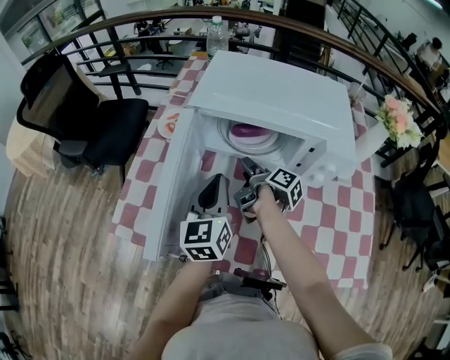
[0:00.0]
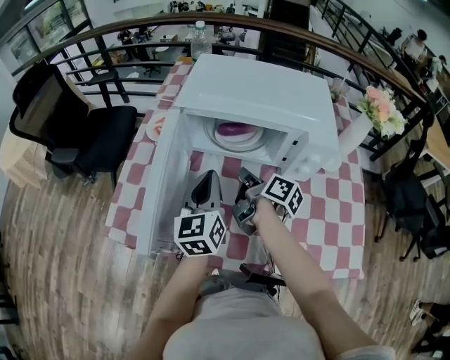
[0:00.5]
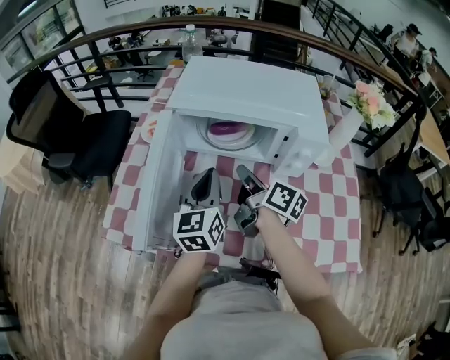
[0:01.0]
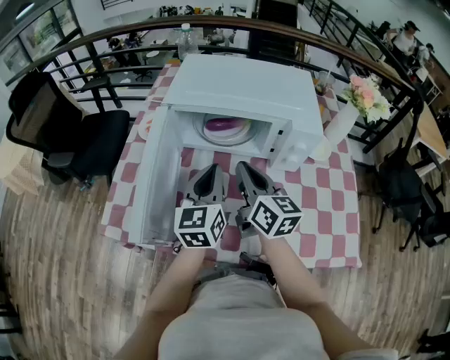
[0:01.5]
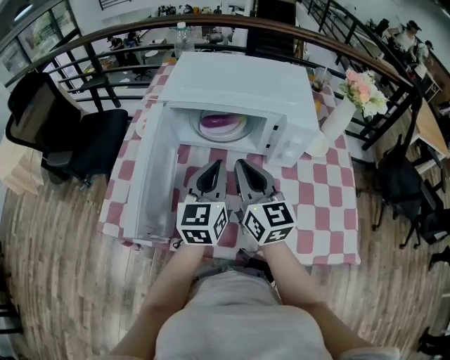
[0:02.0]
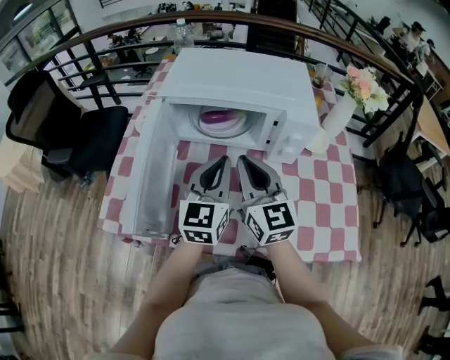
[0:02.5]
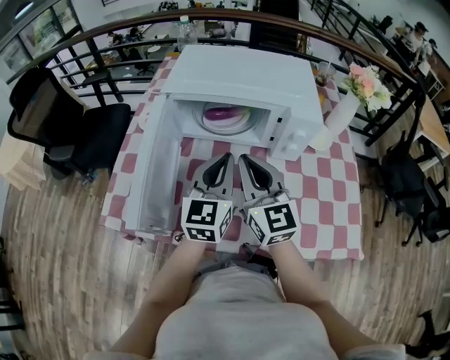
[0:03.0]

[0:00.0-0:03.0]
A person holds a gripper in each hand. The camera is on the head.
0:00.0 to 0:01.5: The left gripper changes place by approximately 5 cm.

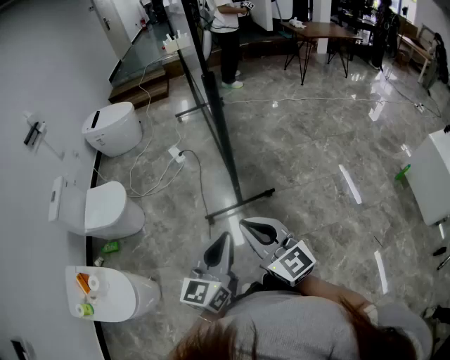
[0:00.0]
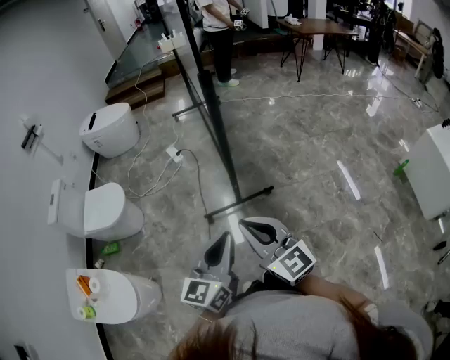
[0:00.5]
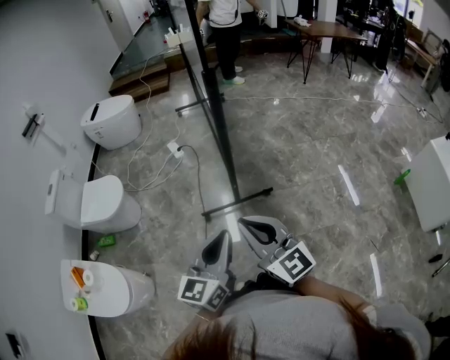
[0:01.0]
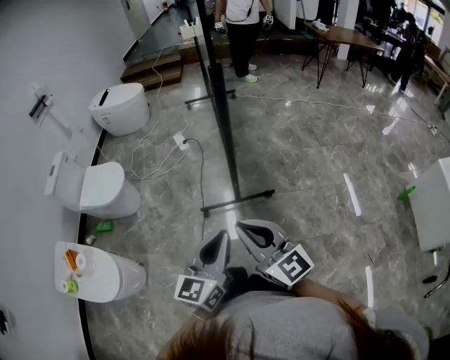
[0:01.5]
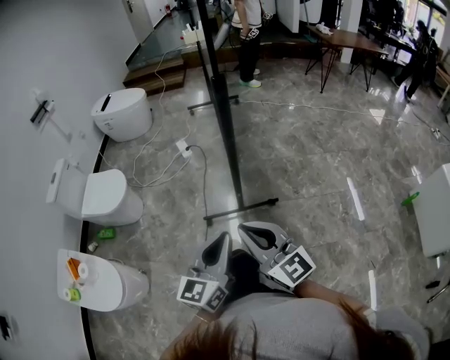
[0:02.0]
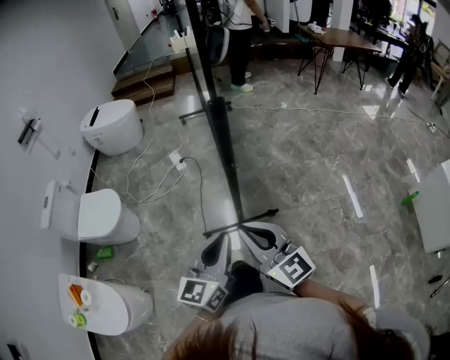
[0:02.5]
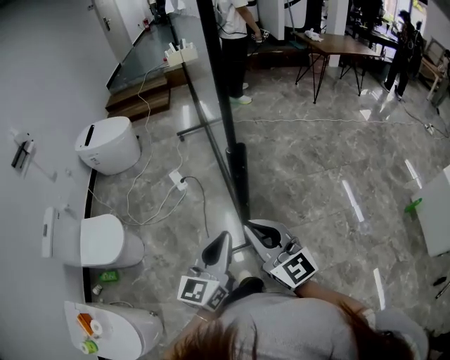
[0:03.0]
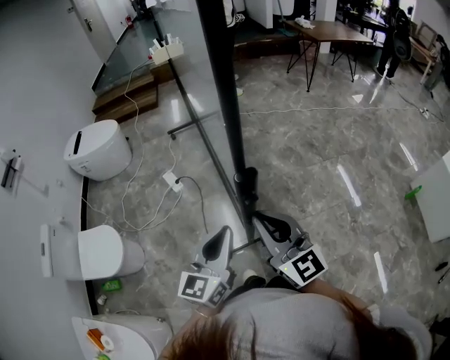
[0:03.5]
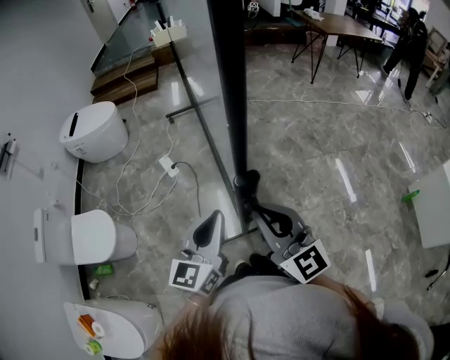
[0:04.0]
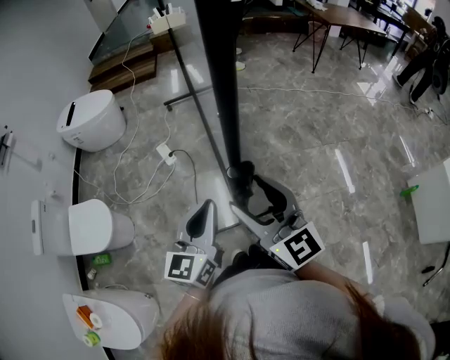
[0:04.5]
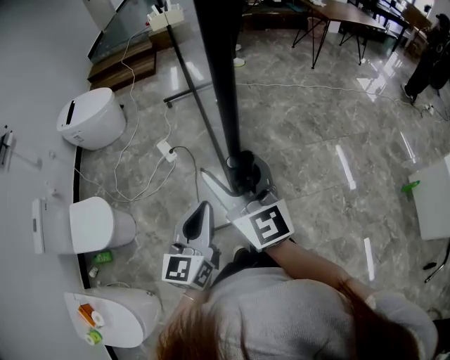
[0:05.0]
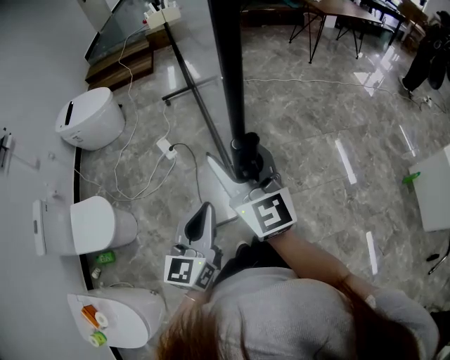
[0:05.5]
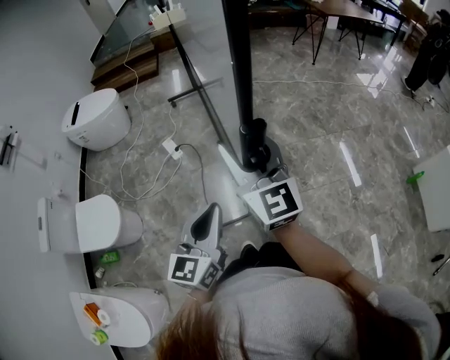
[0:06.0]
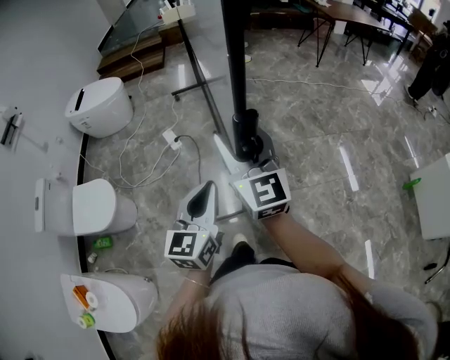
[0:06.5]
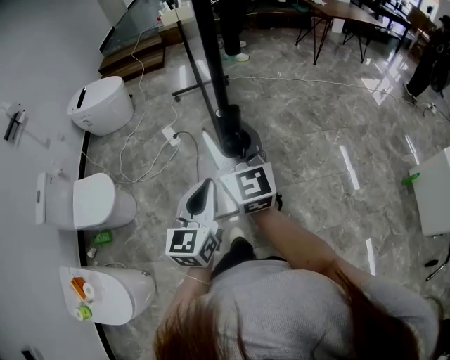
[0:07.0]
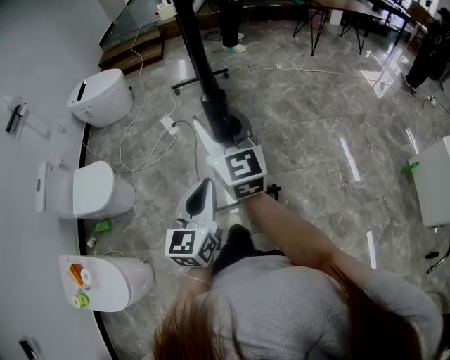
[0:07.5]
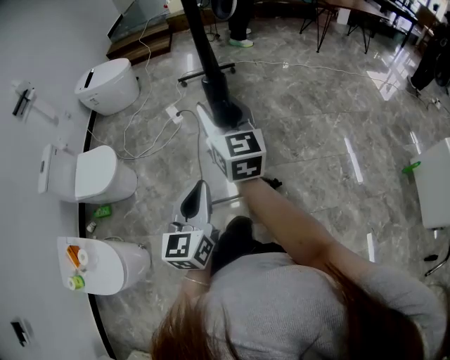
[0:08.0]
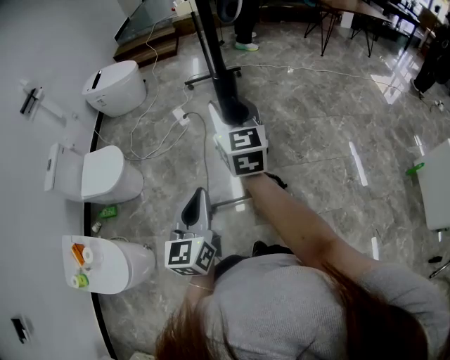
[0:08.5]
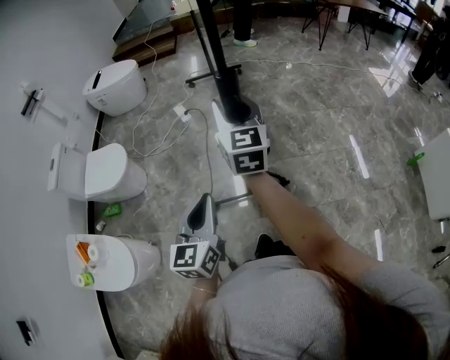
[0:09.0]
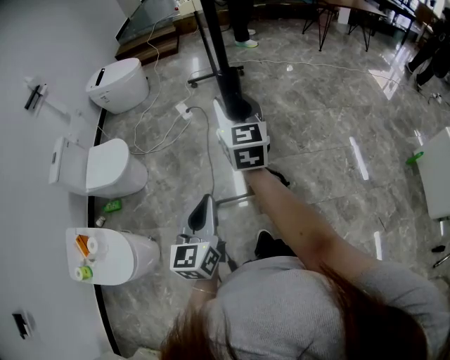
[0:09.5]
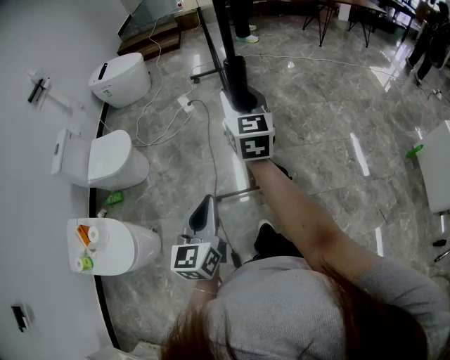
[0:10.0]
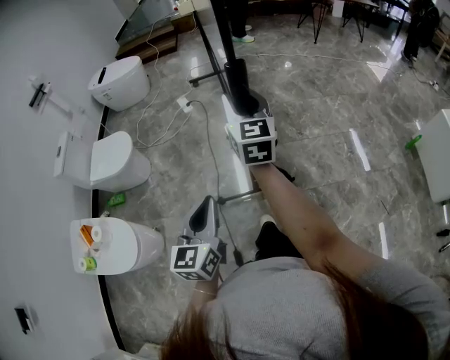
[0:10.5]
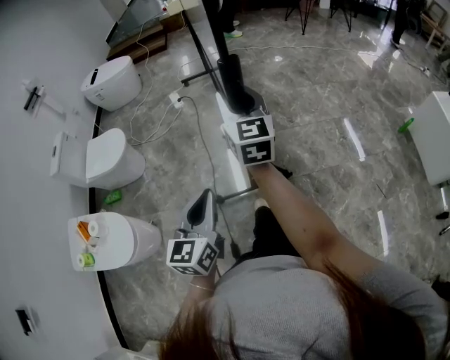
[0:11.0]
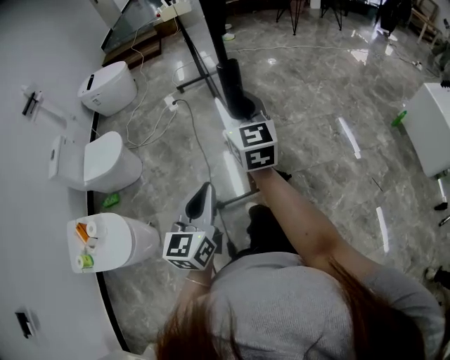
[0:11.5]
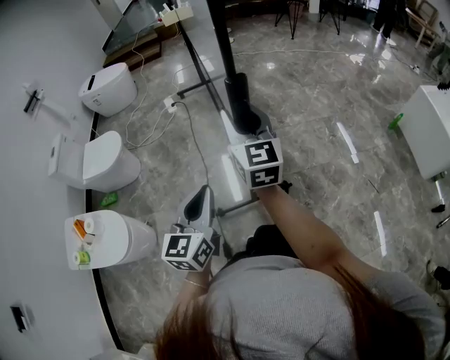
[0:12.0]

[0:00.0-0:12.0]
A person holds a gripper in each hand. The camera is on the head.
0:00.0 to 0:02.0: The left gripper shifts some 5 cm forward. Meanwhile the right gripper moves about 5 cm.
0:02.0 to 0:04.0: The two grippers go roughly 30 cm forward.
0:04.0 to 0:06.0: The right gripper is displaced forward by roughly 5 cm, and opens its fingers. The left gripper shifts by about 5 cm.
0:06.0 to 0:08.0: Both grippers move backward, approximately 15 cm.
0:08.0 to 0:10.0: The right gripper heads backward, covering approximately 10 cm; the left gripper goes approximately 15 cm backward.
0:10.0 to 0:12.0: The left gripper is displaced backward and to the right by some 15 cm, while the right gripper travels backward by approximately 20 cm.

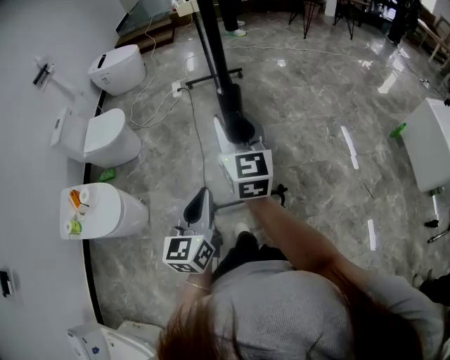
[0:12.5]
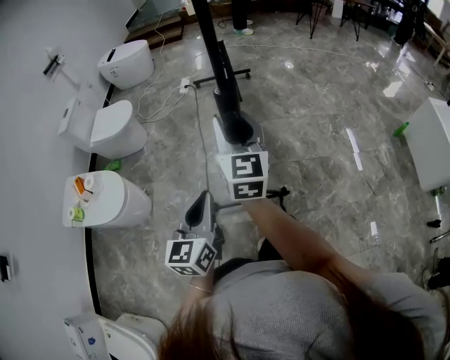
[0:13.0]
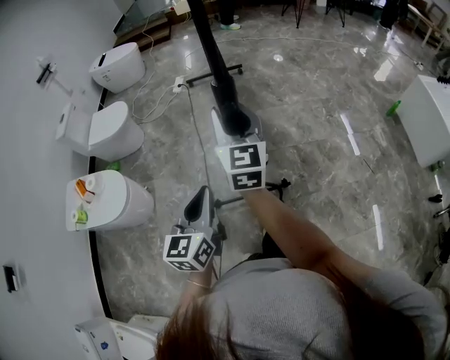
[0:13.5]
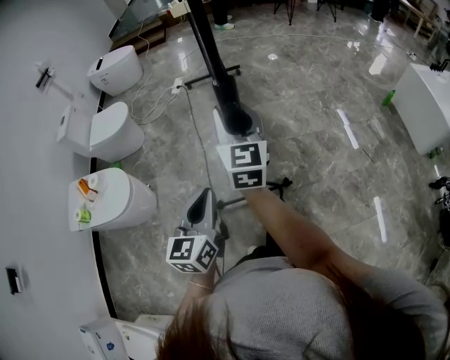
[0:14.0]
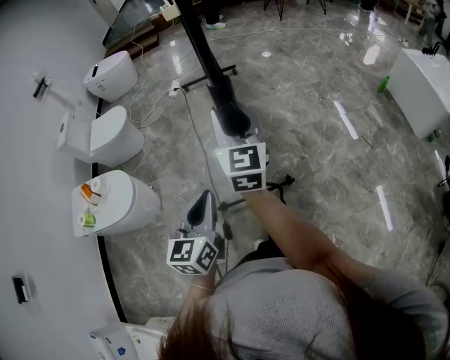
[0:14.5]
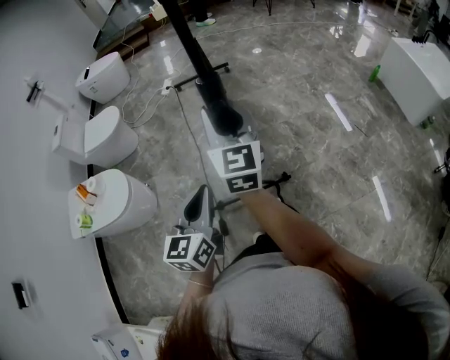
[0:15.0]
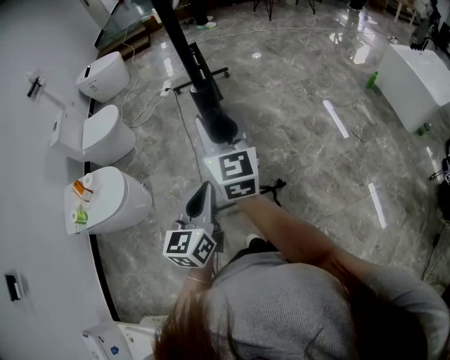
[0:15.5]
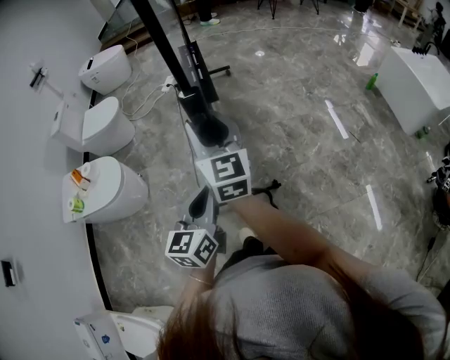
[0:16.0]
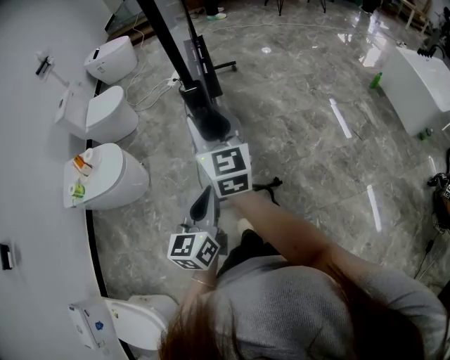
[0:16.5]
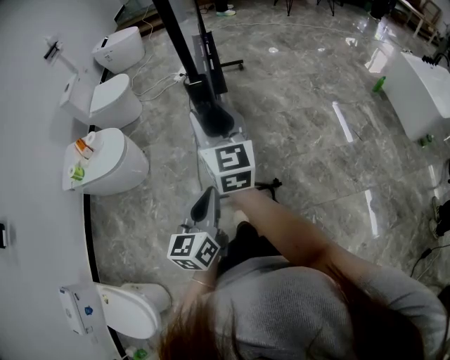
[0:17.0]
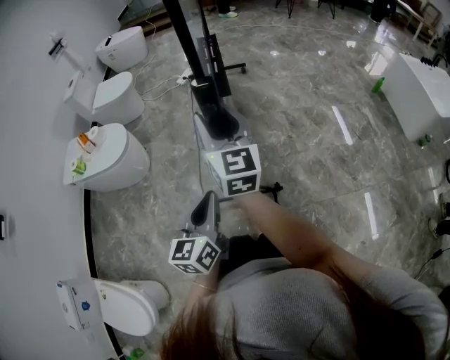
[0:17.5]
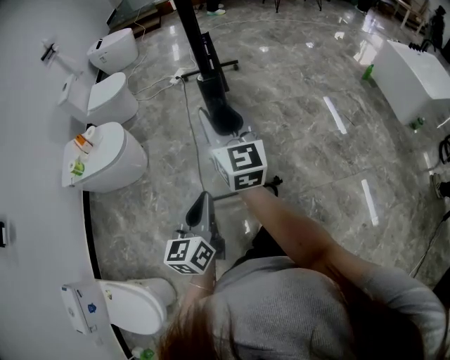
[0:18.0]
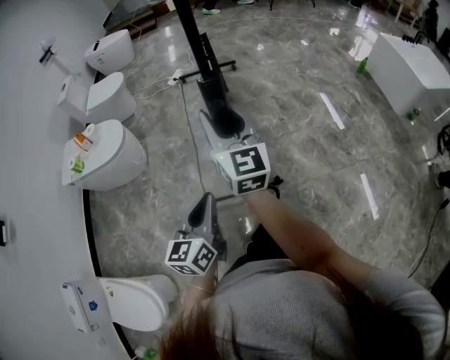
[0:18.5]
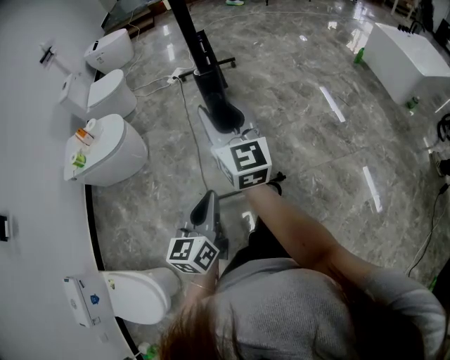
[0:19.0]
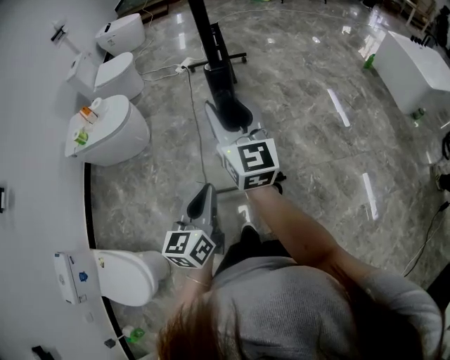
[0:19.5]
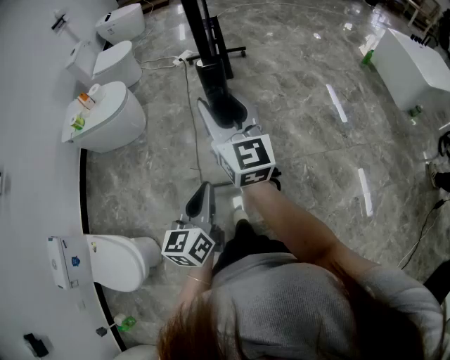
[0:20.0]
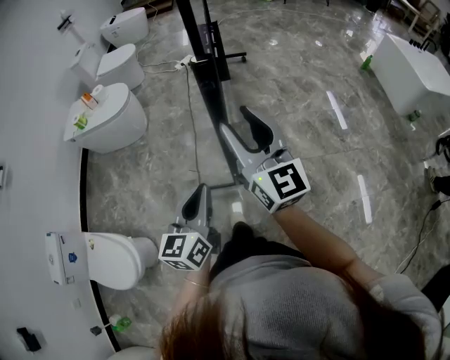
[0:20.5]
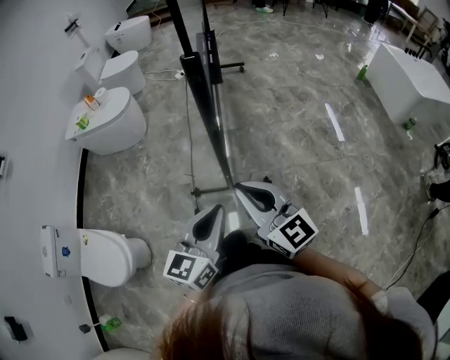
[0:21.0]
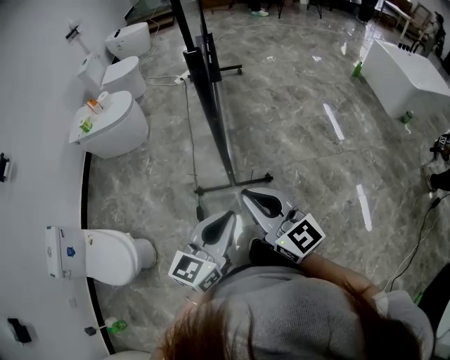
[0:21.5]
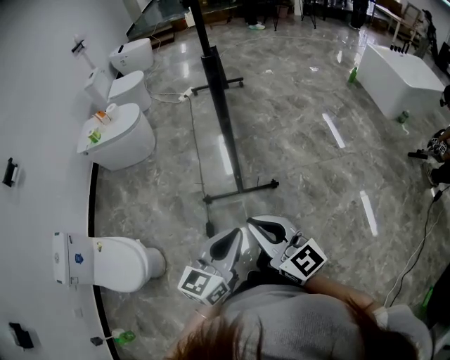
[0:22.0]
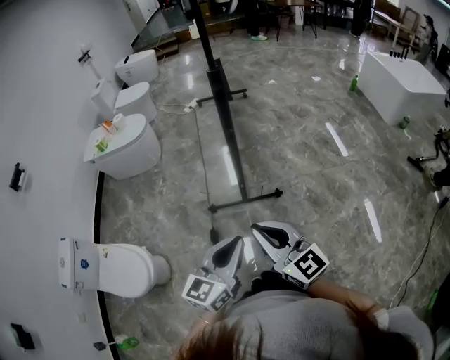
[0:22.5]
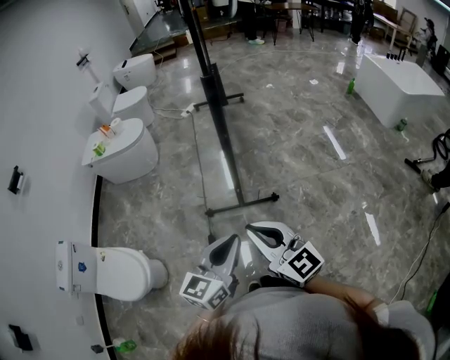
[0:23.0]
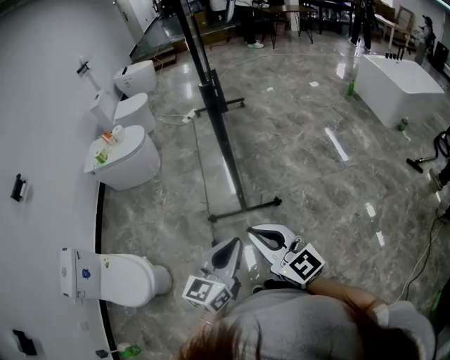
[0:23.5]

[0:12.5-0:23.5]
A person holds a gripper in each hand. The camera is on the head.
0:12.5 to 0:14.5: Both grippers move backward, roughly 20 cm.
0:14.5 to 0:16.0: The left gripper goes approximately 10 cm backward and to the right. Meanwhile the right gripper heads backward, covering about 10 cm.
0:16.0 to 0:18.0: The grippers both shift backward by about 20 cm.
0:18.0 to 0:20.0: The grippers both shift backward by approximately 20 cm.
0:20.0 to 0:21.5: The right gripper is displaced backward by some 30 cm, changes its angle by about 20 degrees, and closes up, while the left gripper moves backward and to the right, approximately 20 cm, and changes its angle by roughly 20 degrees.
0:21.5 to 0:23.5: The two grippers go about 5 cm backward.

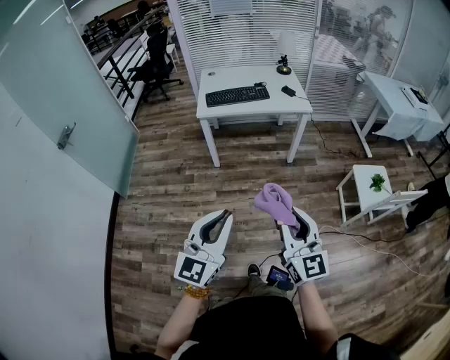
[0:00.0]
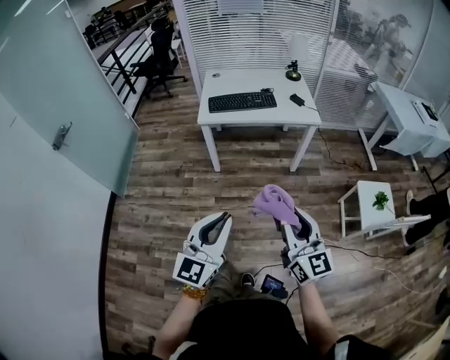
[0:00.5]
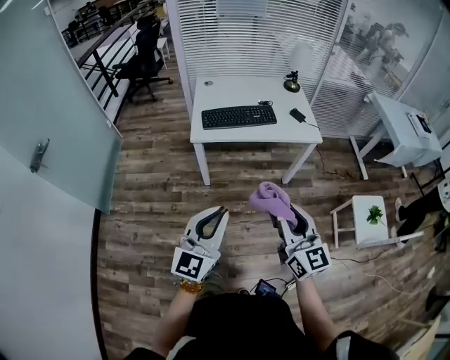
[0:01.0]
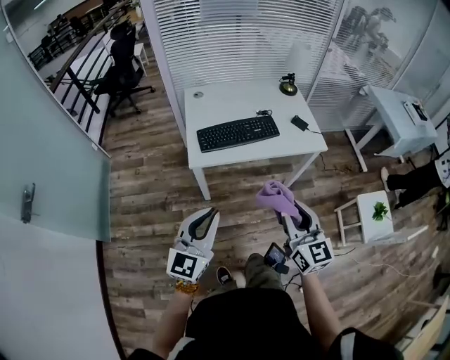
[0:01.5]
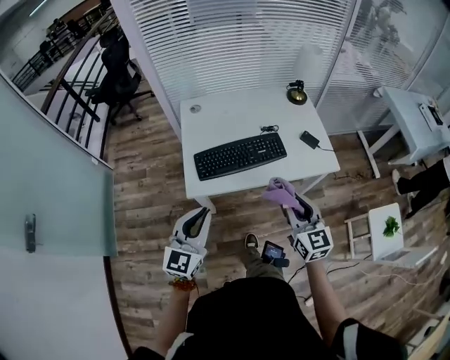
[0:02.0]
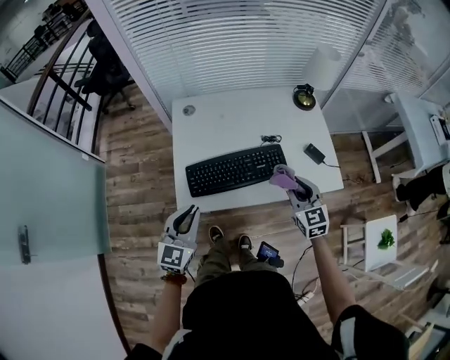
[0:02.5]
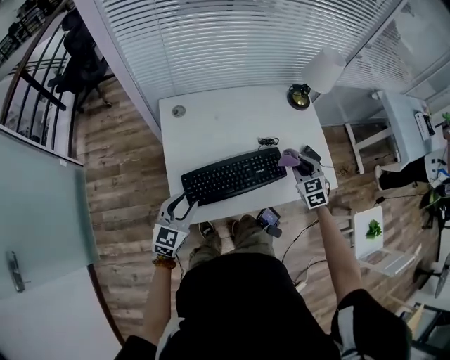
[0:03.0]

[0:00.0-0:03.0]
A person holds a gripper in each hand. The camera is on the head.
0:00.0 to 0:01.5: The two grippers travel together, forward, some 50 cm.
0:01.5 to 0:03.0: The two grippers travel together, forward, about 50 cm. The right gripper tilts its fingers approximately 30 degrees downward; the left gripper is displaced downward by about 20 cm, turns by approximately 20 degrees, and opens.
